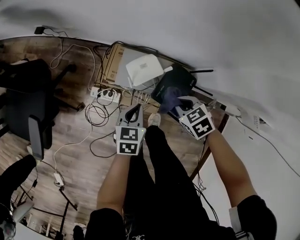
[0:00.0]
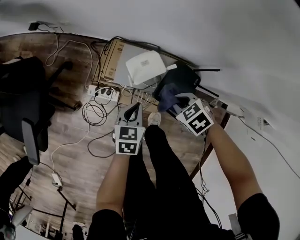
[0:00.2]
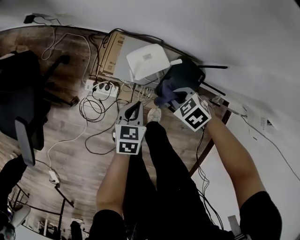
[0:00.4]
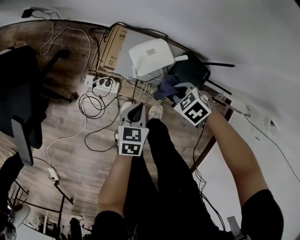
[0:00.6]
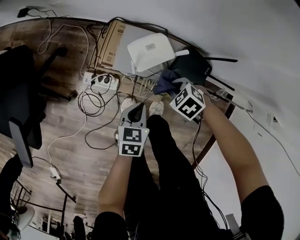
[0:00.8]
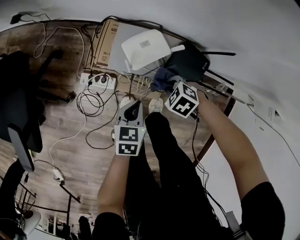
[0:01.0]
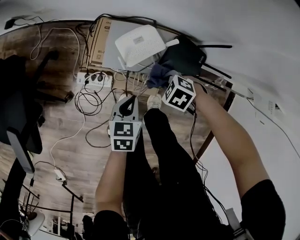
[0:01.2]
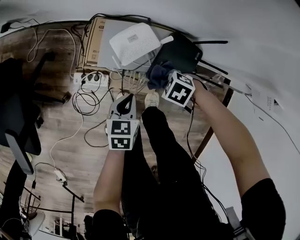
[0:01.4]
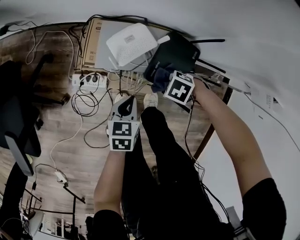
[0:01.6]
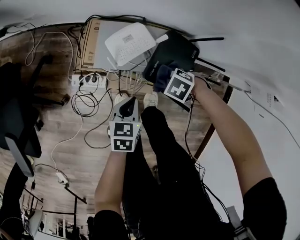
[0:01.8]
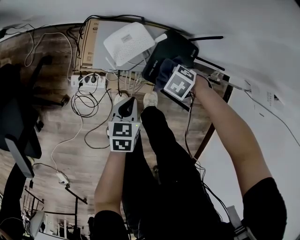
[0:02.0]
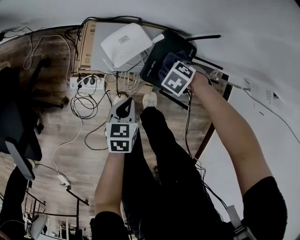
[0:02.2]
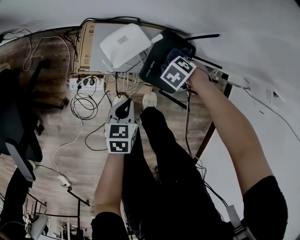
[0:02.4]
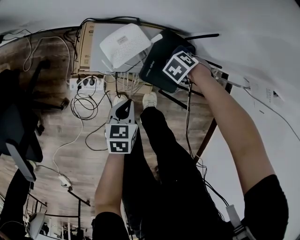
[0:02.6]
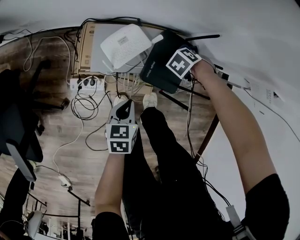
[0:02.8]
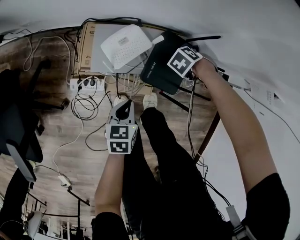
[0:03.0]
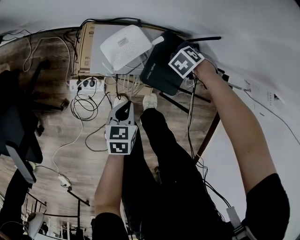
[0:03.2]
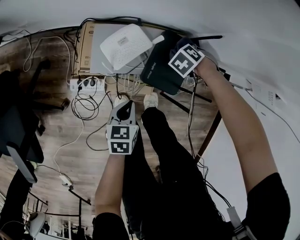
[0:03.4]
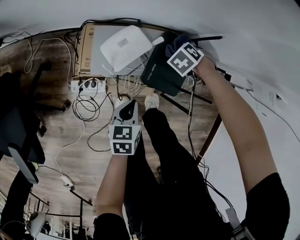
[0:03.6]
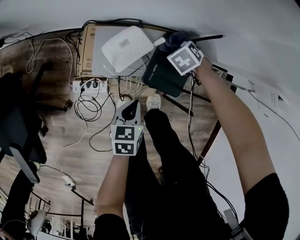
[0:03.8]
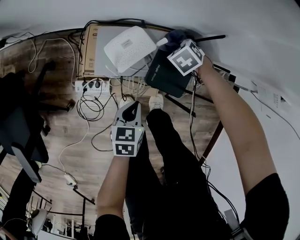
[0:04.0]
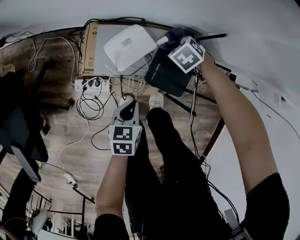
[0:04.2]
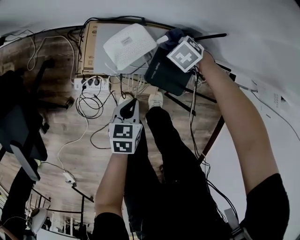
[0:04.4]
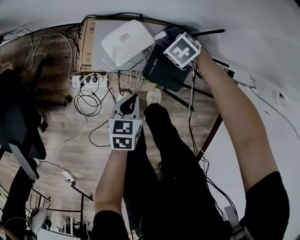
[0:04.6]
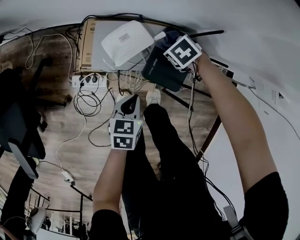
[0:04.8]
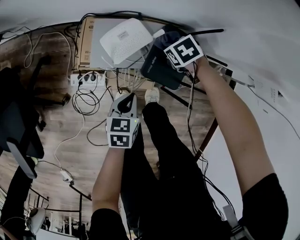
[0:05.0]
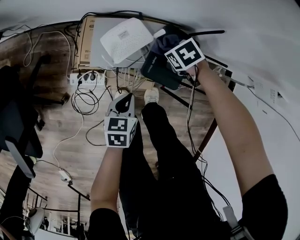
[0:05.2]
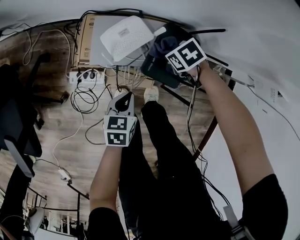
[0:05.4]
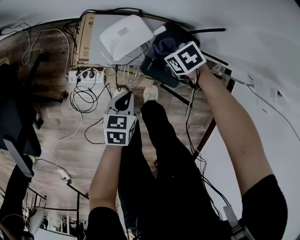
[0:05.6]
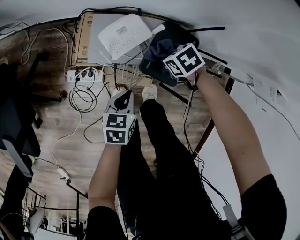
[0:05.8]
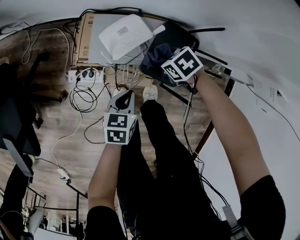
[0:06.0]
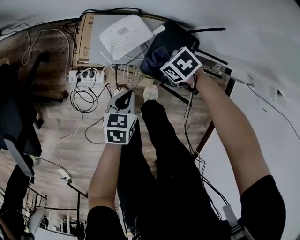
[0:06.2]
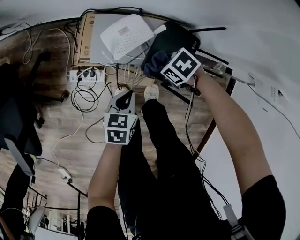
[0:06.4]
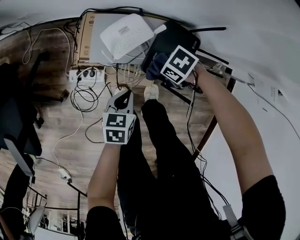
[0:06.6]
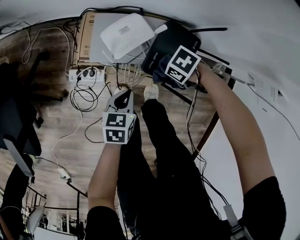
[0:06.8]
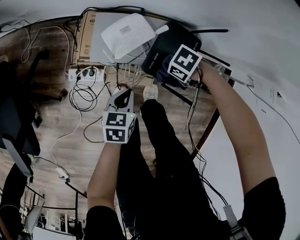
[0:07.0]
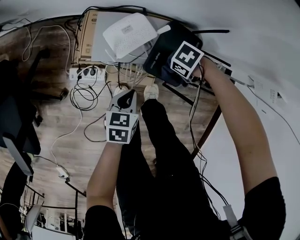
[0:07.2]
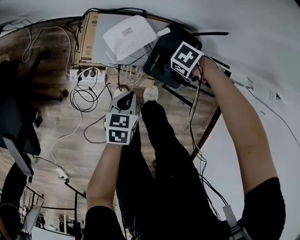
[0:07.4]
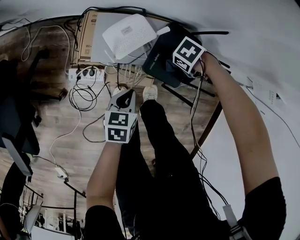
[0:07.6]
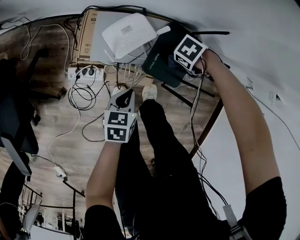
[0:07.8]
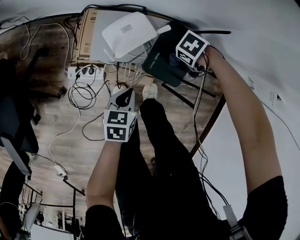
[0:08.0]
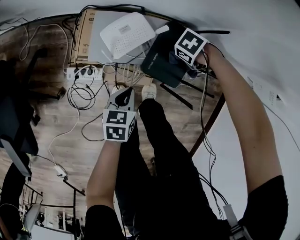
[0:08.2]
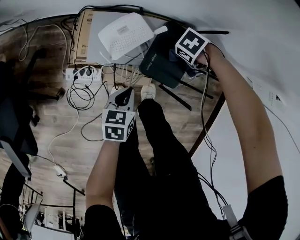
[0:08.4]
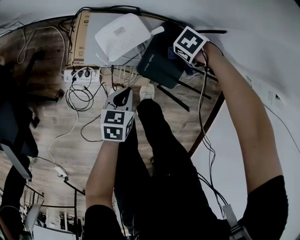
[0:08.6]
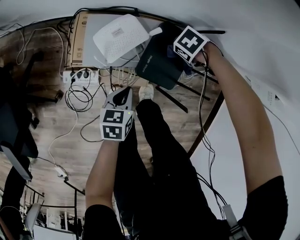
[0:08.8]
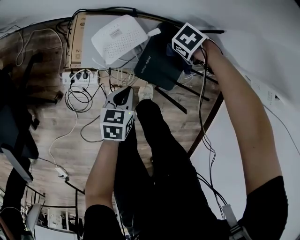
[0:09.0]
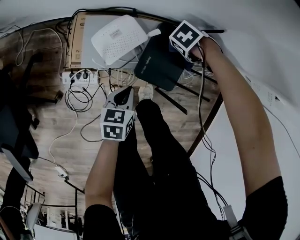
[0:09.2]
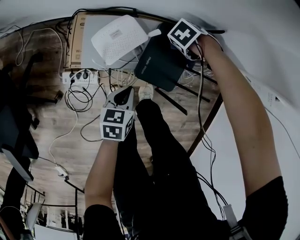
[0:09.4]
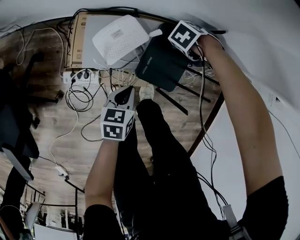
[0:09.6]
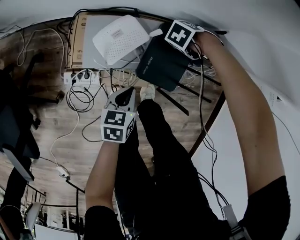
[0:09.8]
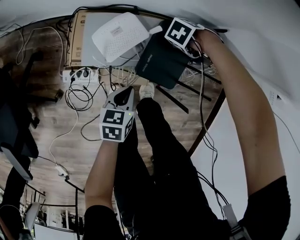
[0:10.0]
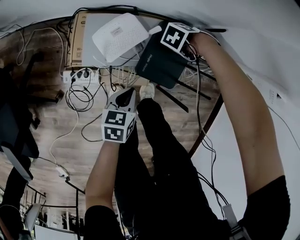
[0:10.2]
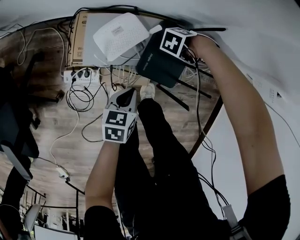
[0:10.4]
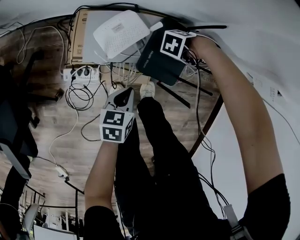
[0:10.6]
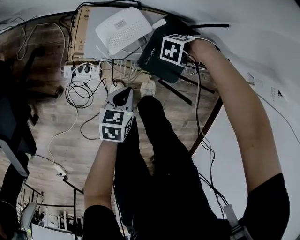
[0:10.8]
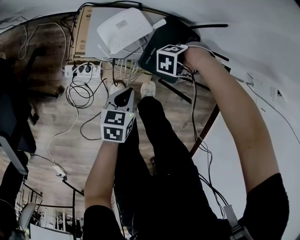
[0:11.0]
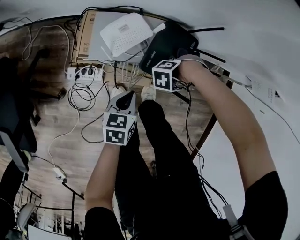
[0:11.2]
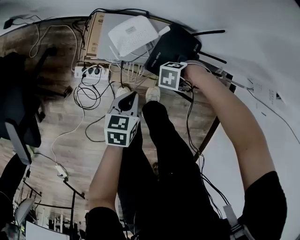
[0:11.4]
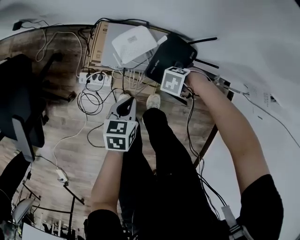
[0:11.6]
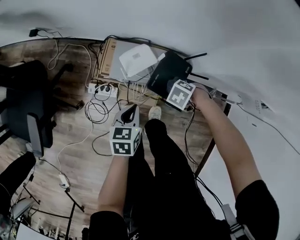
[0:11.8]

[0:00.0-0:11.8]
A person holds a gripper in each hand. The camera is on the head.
0.0 to 1.4 s: The left gripper heads downward, covering some 10 cm. Meanwhile the right gripper heads downward, covering roughly 20 cm, and changes its angle by approximately 30 degrees.
1.4 to 3.0 s: The right gripper moves approximately 15 cm, and changes its angle by approximately 30 degrees.
3.0 to 4.4 s: The right gripper moves about 10 cm, and swivels roughly 20 degrees.
4.4 to 6.0 s: The right gripper moves about 10 cm, and changes its angle by approximately 20 degrees.
6.0 to 7.4 s: The right gripper shifts by approximately 5 cm, and turns by approximately 30 degrees.
7.4 to 8.8 s: The right gripper heads to the left, covering some 10 cm.
8.8 to 10.4 s: The right gripper swivels approximately 20 degrees.
10.4 to 11.8 s: The left gripper heads upward, covering some 15 cm. Meanwhile the right gripper shifts by roughly 20 cm, and swivels roughly 20 degrees.

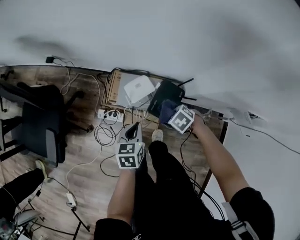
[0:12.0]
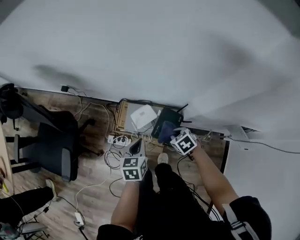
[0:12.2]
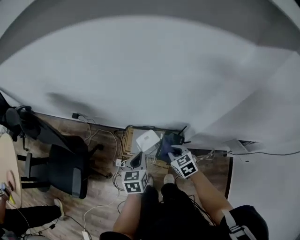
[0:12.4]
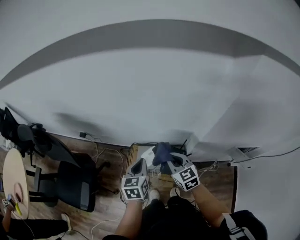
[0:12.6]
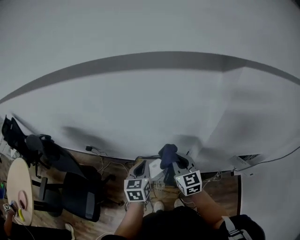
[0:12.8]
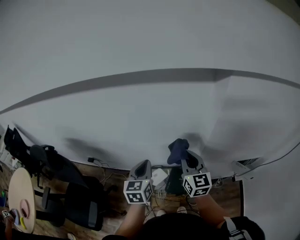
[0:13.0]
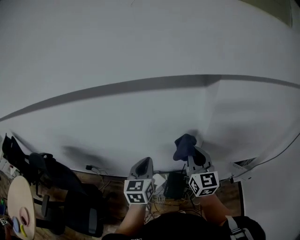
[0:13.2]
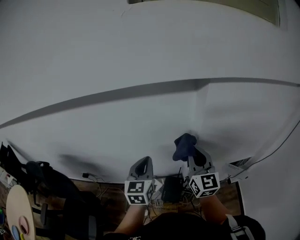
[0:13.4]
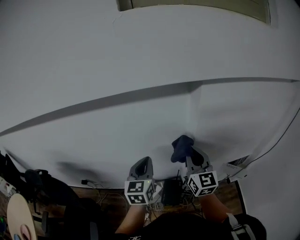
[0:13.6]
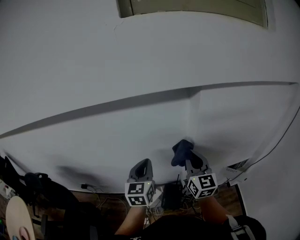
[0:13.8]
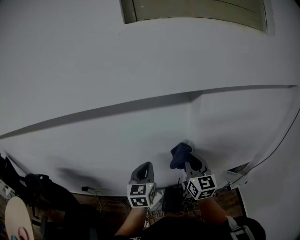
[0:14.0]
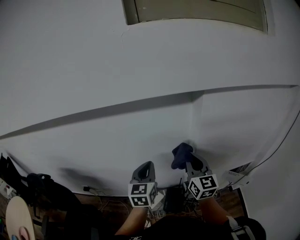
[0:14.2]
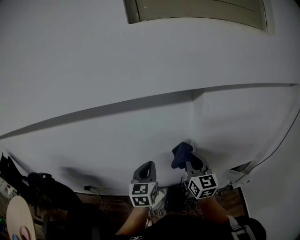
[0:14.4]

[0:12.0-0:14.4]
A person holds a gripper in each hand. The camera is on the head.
12.0 to 13.2 s: The two grippers go some 50 cm upward. The right gripper points its fingers roughly 90 degrees further upward; the left gripper angles its fingers upward, by roughly 30 degrees.
13.2 to 14.4 s: The left gripper changes place by roughly 5 cm.

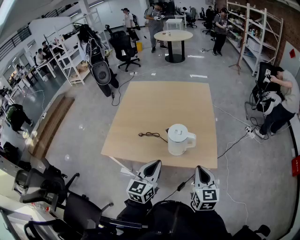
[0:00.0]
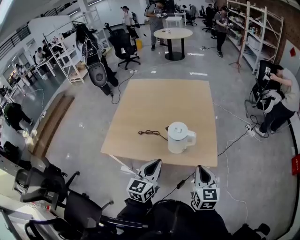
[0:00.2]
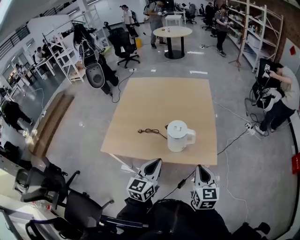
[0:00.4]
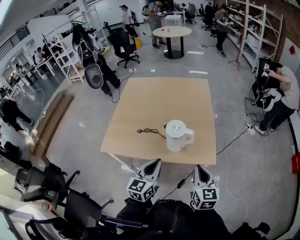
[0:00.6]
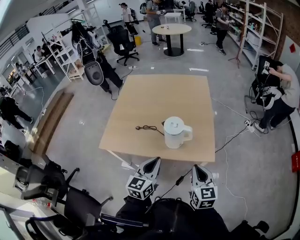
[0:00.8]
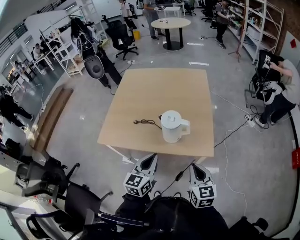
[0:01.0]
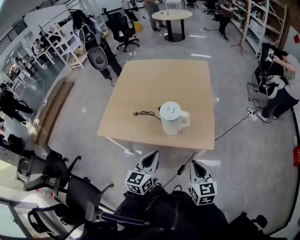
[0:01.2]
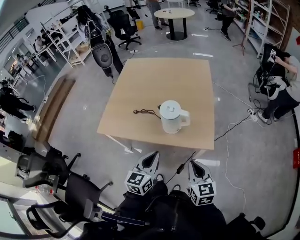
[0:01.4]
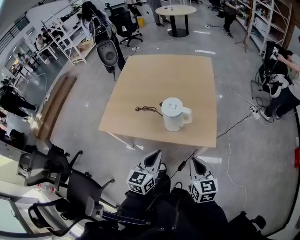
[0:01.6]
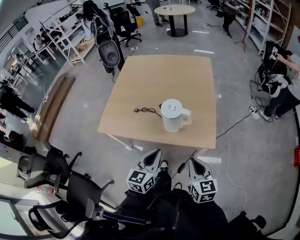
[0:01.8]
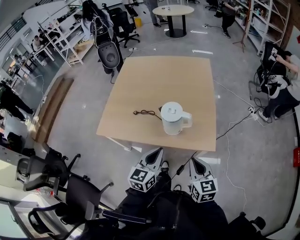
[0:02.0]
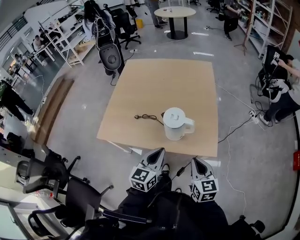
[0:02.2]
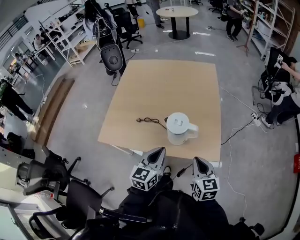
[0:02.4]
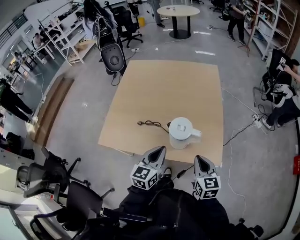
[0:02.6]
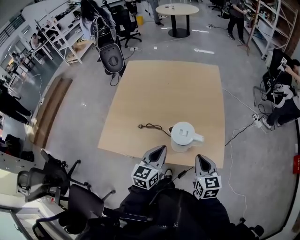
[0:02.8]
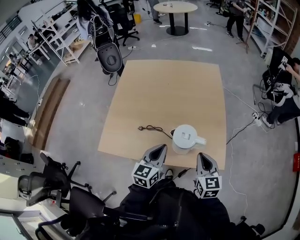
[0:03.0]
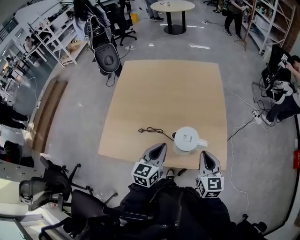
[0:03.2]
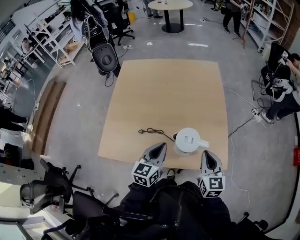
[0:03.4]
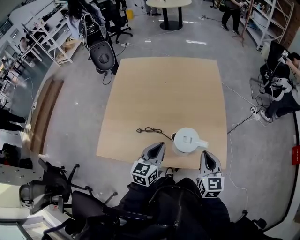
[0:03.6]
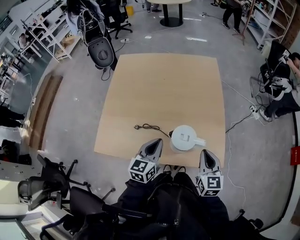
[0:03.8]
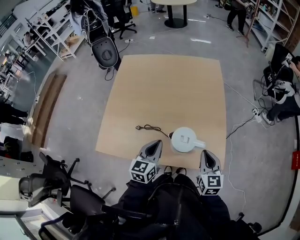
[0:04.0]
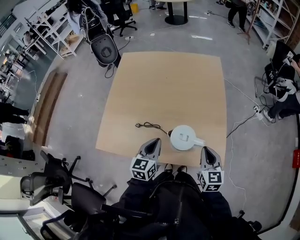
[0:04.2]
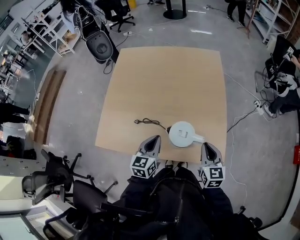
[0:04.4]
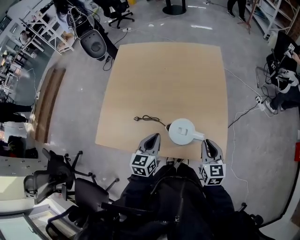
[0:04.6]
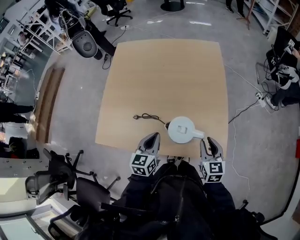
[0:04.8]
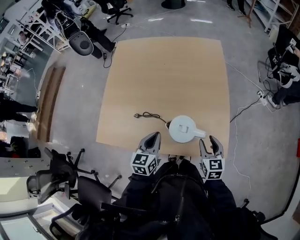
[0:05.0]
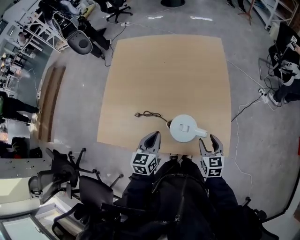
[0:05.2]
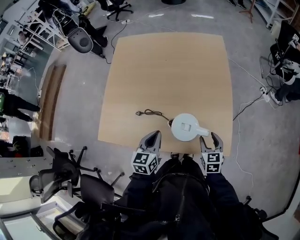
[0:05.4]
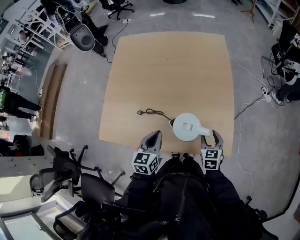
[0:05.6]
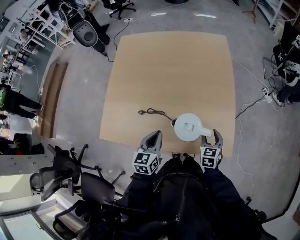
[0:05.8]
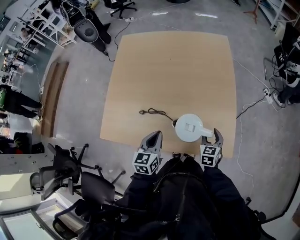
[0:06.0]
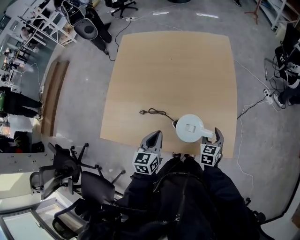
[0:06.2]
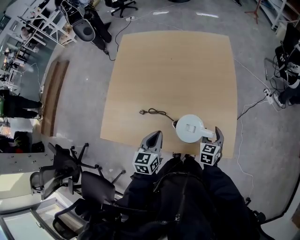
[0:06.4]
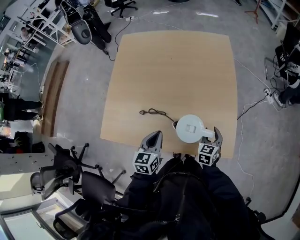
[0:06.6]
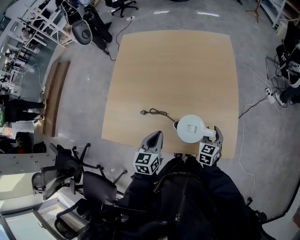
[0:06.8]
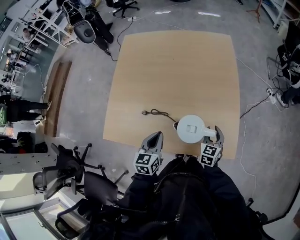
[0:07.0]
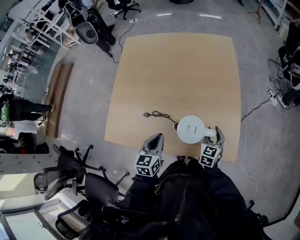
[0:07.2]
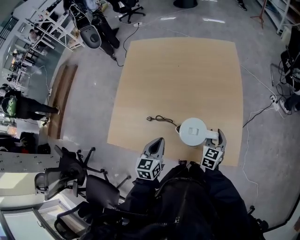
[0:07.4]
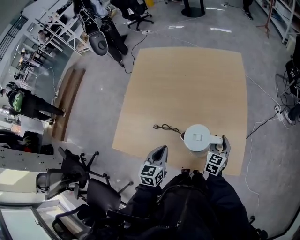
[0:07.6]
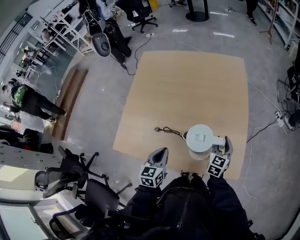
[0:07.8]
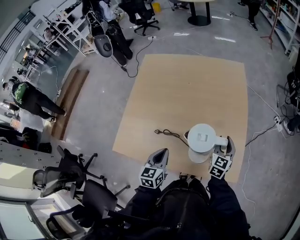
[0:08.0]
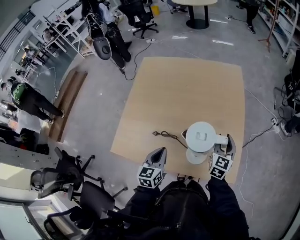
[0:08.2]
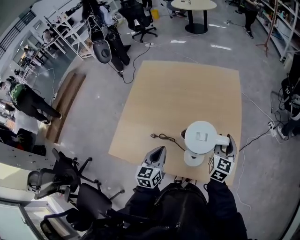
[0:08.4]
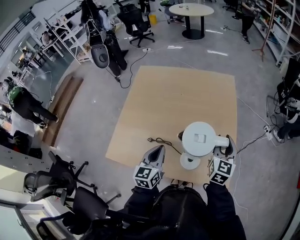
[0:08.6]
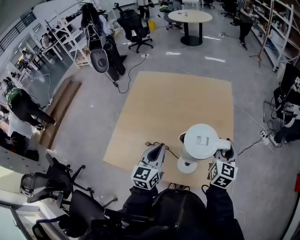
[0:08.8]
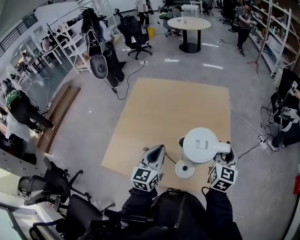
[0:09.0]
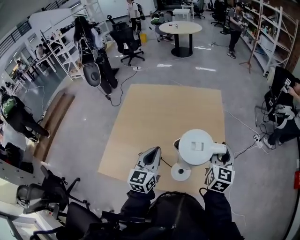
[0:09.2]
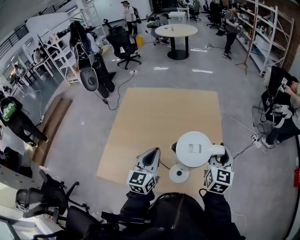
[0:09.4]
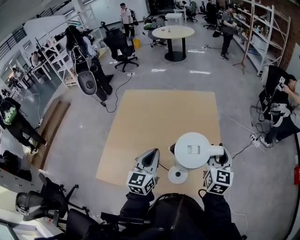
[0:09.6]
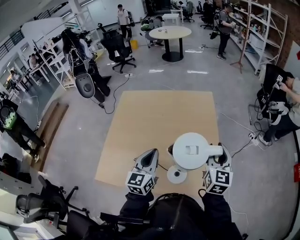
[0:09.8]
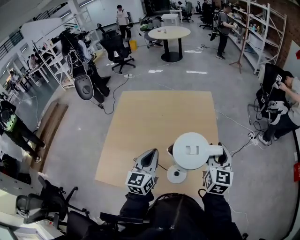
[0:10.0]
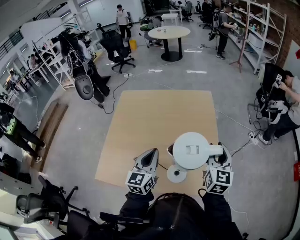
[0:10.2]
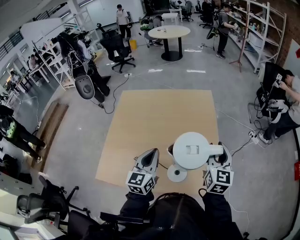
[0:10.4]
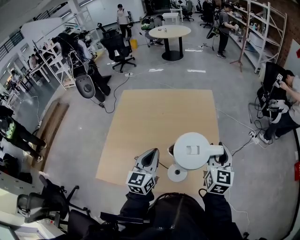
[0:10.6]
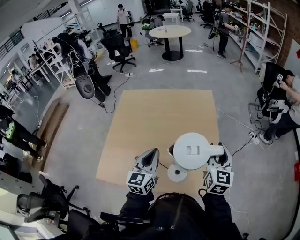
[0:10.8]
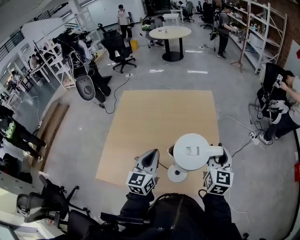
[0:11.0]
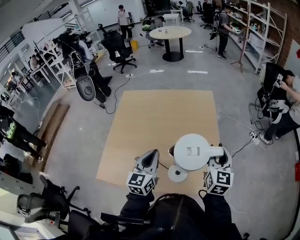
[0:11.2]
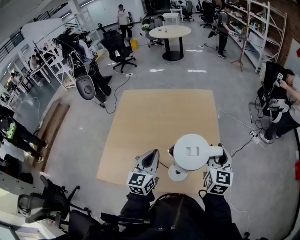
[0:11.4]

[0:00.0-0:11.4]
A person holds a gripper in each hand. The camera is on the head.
0.0 to 1.4 s: The left gripper is displaced to the right by roughly 5 cm, while the right gripper heads downward, covering some 5 cm.
1.4 to 2.8 s: Both grippers move forward, some 20 cm.
2.8 to 4.2 s: The left gripper travels forward and downward by roughly 10 cm. The right gripper heads forward, covering approximately 10 cm.
4.2 to 5.6 s: The right gripper is displaced downward by roughly 15 cm, and opens.
5.6 to 7.2 s: The right gripper changes place by some 5 cm.
7.2 to 8.6 s: The right gripper goes approximately 20 cm upward. Meanwhile the left gripper is displaced upward by approximately 10 cm.
8.6 to 10.0 s: Both grippers travel together upward, roughly 10 cm.
10.0 to 11.4 s: The grippers move only a little.
